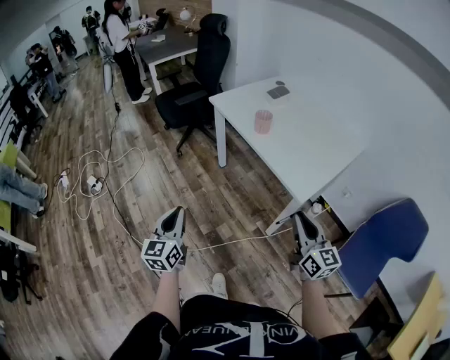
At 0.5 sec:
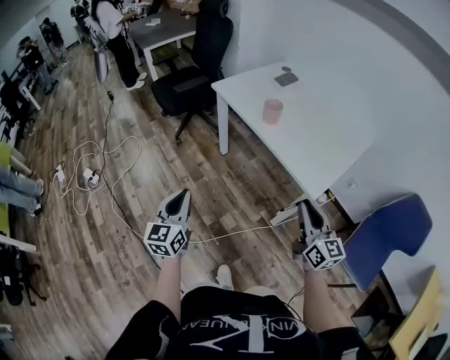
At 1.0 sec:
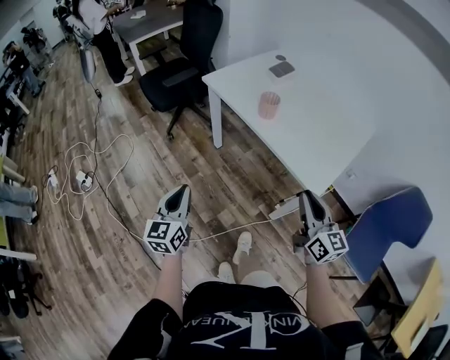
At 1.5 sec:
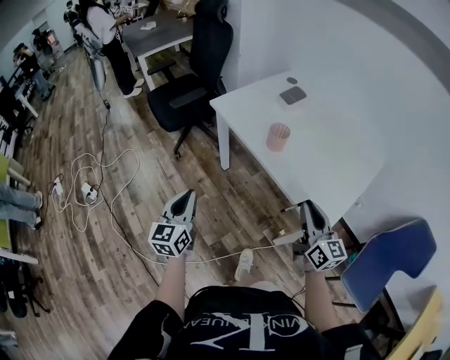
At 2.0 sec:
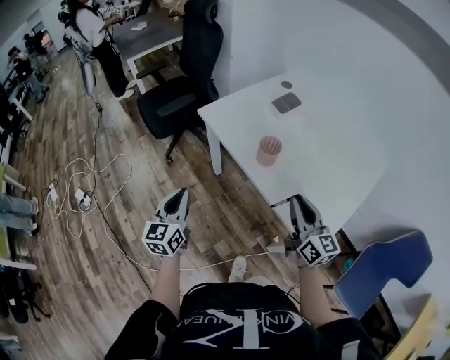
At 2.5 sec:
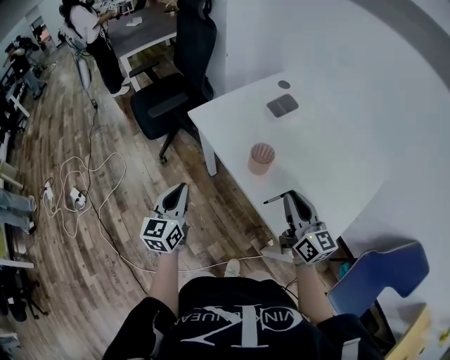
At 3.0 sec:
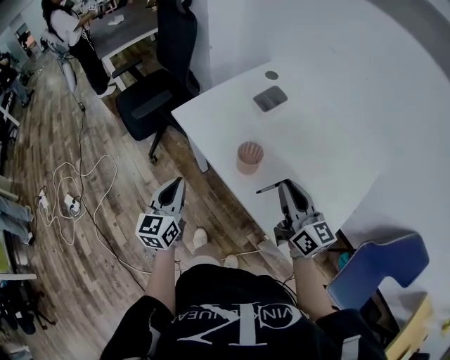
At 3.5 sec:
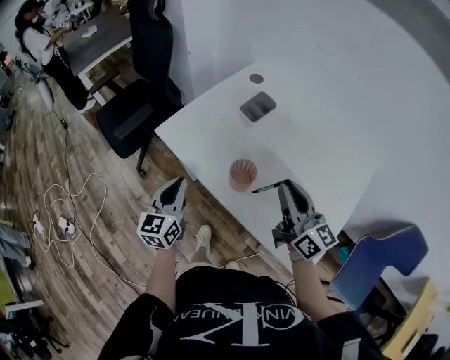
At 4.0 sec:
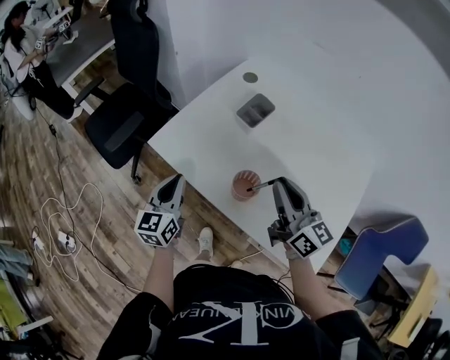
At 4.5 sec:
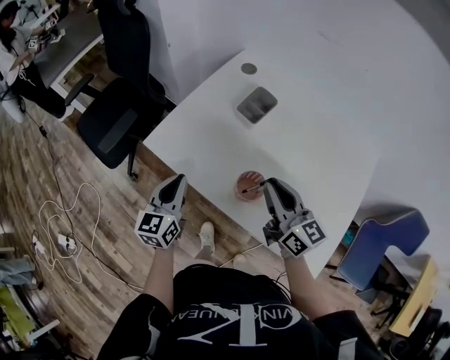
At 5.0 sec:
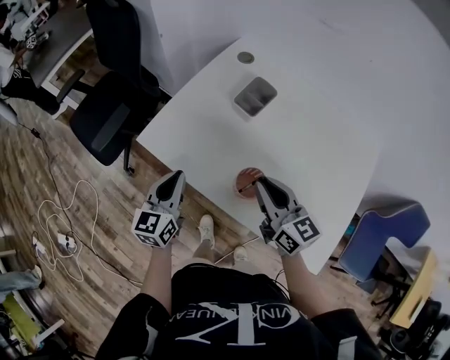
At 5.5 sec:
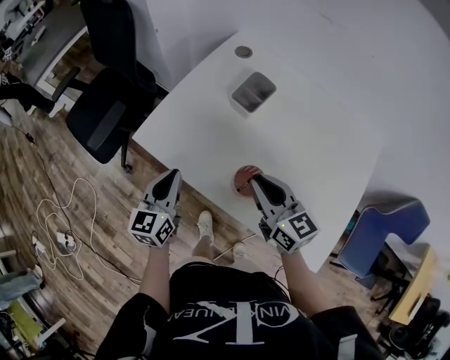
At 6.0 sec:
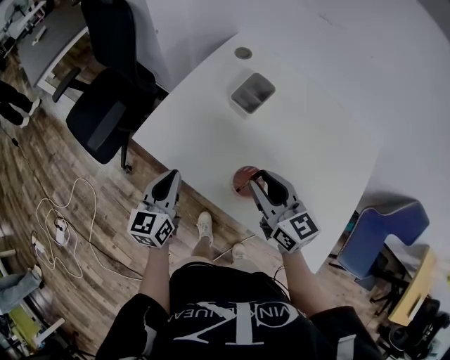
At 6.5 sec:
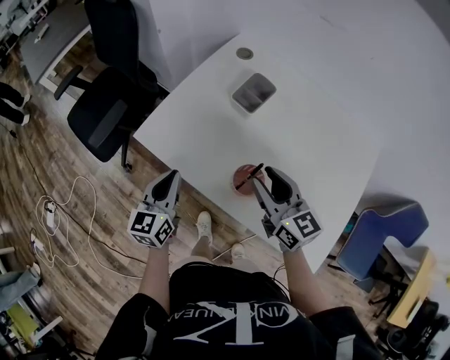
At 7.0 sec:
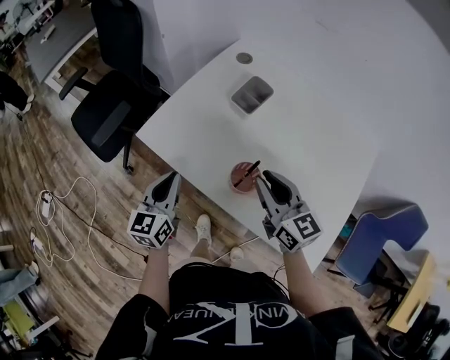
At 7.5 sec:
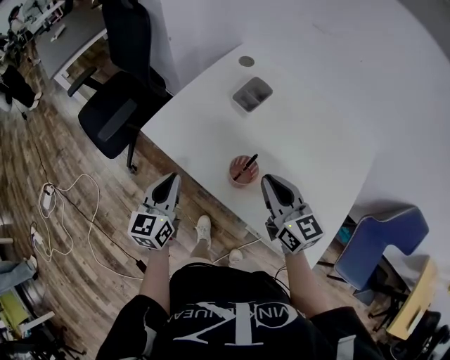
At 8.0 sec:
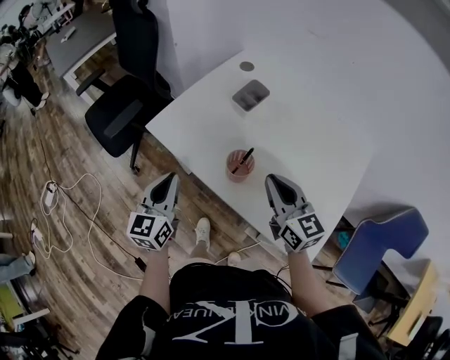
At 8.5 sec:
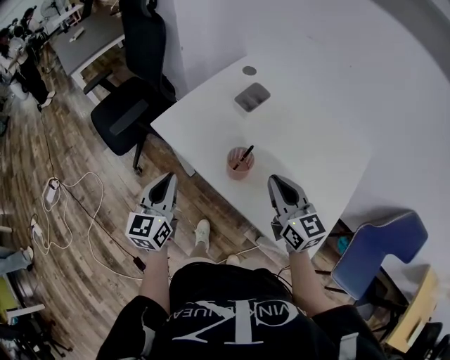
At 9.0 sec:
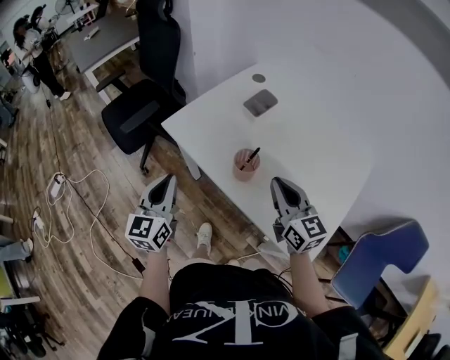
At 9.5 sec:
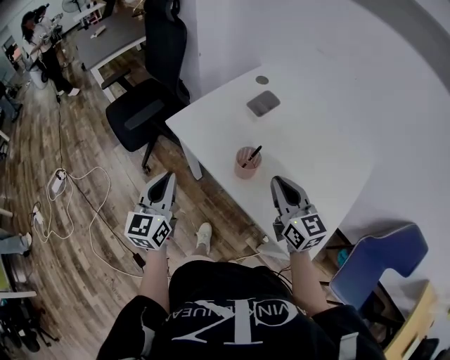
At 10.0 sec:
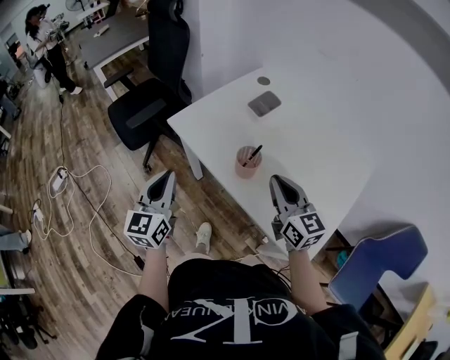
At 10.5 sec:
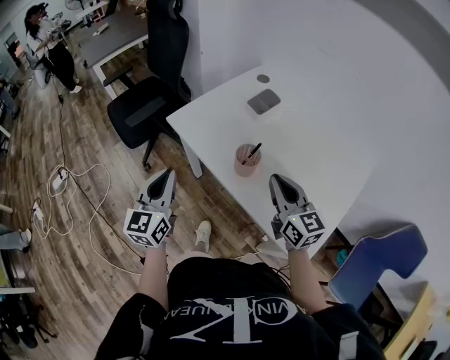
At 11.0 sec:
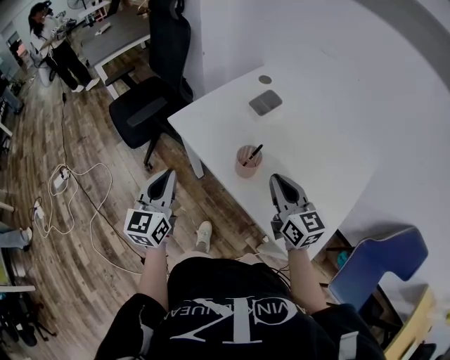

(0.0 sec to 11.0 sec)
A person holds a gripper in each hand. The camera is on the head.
0.0 sec - 2.0 sec: Both grippers travel together forward, approximately 30 cm.
2.0 sec - 3.5 sec: The left gripper travels forward and to the right by roughly 20 cm; the right gripper heads forward, covering roughly 15 cm.
3.5 sec - 5.5 sec: The right gripper moves downward, to the left and forward, about 15 cm. The left gripper goes some 10 cm forward and downward.
5.5 sec - 7.5 sec: The right gripper changes place by roughly 5 cm, and opens, then closes again, while the left gripper goes about 5 cm backward.
7.5 sec - 9.0 sec: The left gripper travels backward and upward by roughly 10 cm. The right gripper moves backward, some 5 cm.
9.0 sec - 11.0 sec: The grippers move only a little.

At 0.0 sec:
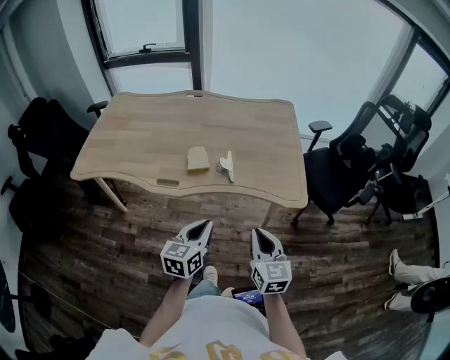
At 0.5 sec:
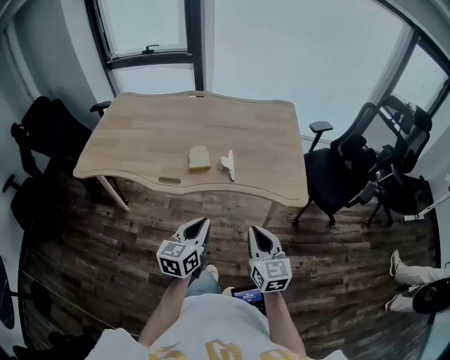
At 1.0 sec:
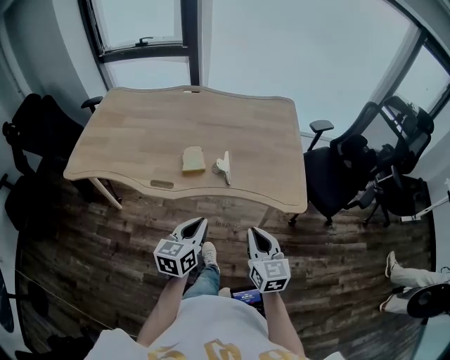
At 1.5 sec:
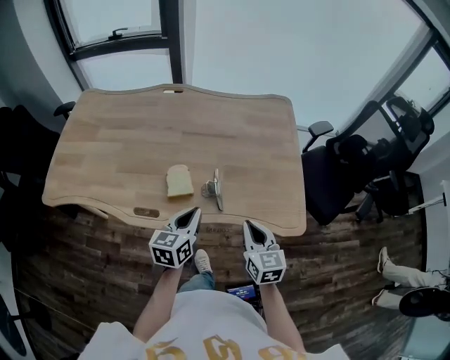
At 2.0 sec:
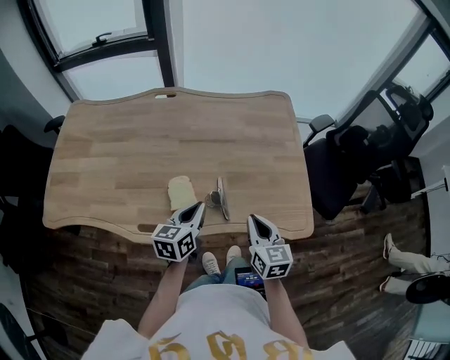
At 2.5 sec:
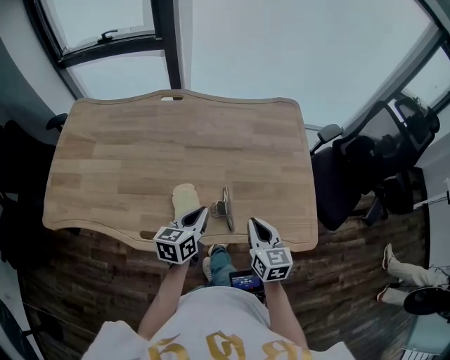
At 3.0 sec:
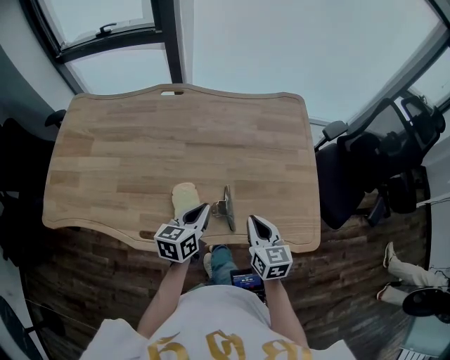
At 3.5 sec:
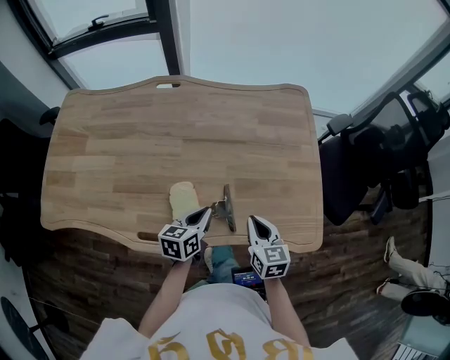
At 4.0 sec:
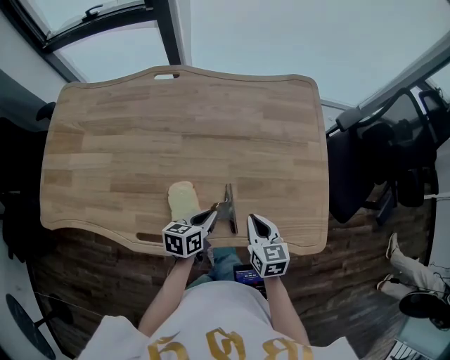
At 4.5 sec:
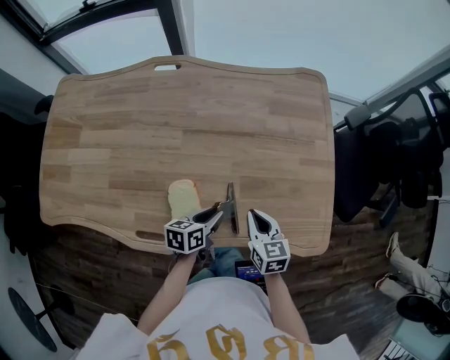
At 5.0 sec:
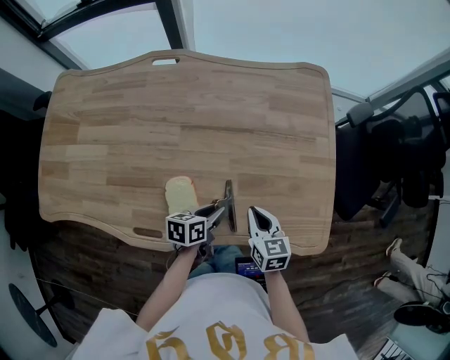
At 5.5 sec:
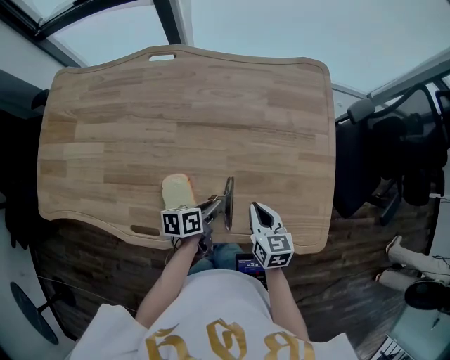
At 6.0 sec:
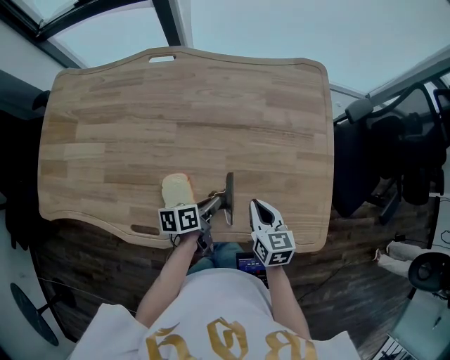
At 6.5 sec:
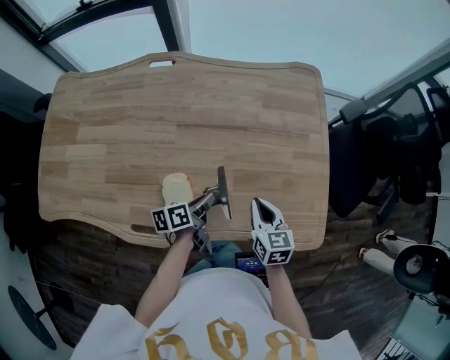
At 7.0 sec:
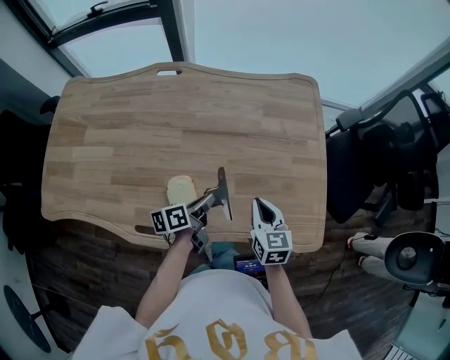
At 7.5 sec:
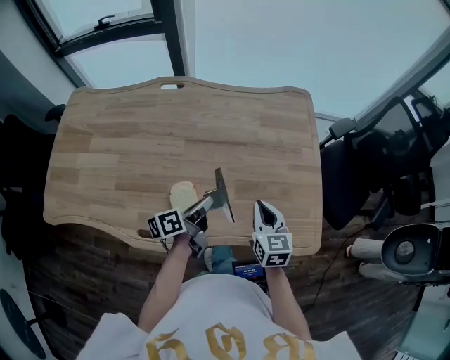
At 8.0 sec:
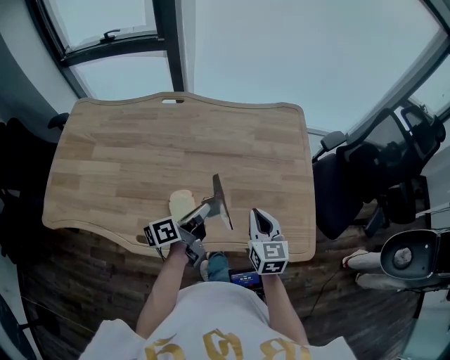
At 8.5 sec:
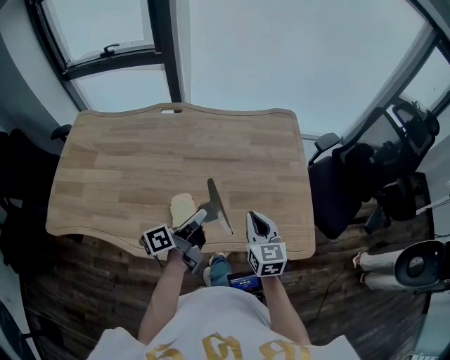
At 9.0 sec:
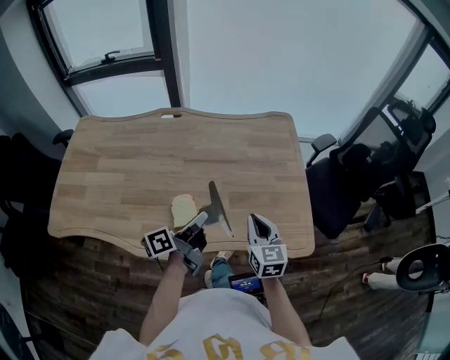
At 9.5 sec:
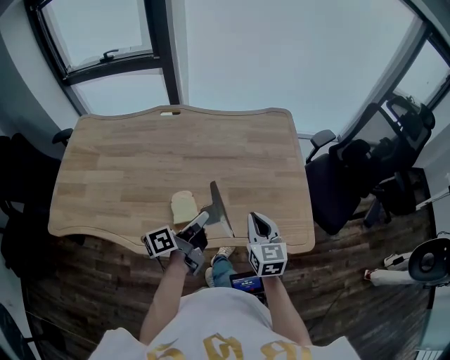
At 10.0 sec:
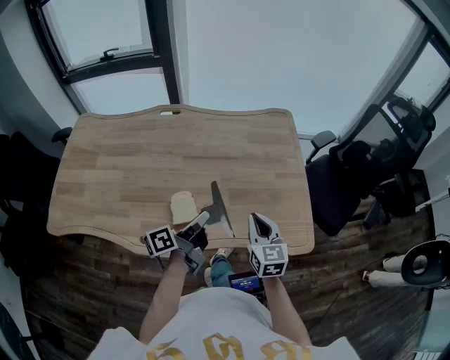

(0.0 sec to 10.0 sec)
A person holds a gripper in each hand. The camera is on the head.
0.0 sec - 2.0 sec: The two grippers go approximately 30 cm forward.
2.0 sec - 4.0 sec: The left gripper heads downward, covering some 15 cm, and turns by about 20 degrees. The right gripper goes about 15 cm downward and forward.
4.0 sec - 6.0 sec: The left gripper changes its angle by approximately 20 degrees.
6.0 sec - 8.0 sec: Both grippers travel together upward, approximately 15 cm. The left gripper rotates about 30 degrees.
8.0 sec - 10.0 sec: The left gripper moves backward, some 5 cm. Meanwhile the right gripper ends up about 5 cm from where it was.

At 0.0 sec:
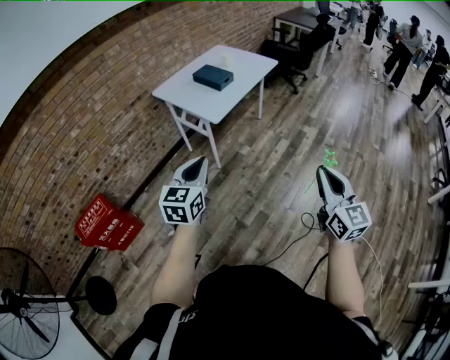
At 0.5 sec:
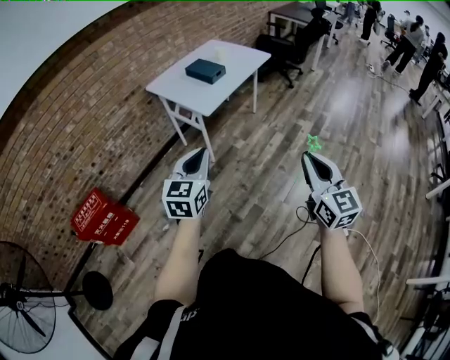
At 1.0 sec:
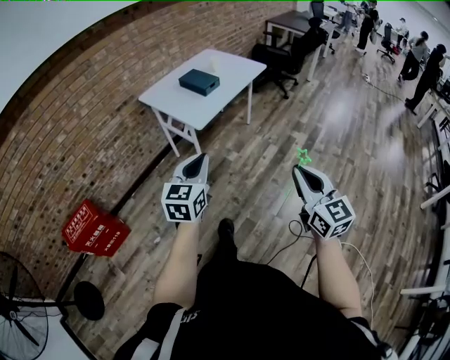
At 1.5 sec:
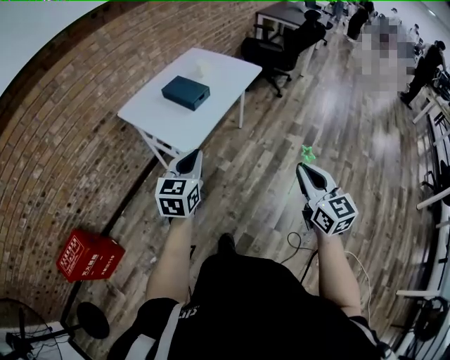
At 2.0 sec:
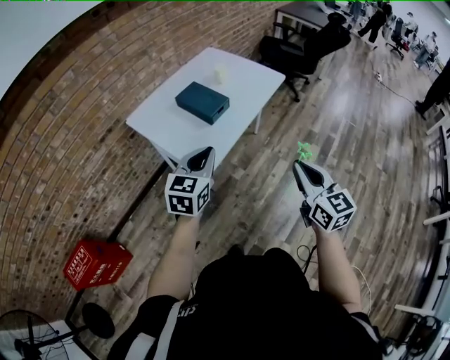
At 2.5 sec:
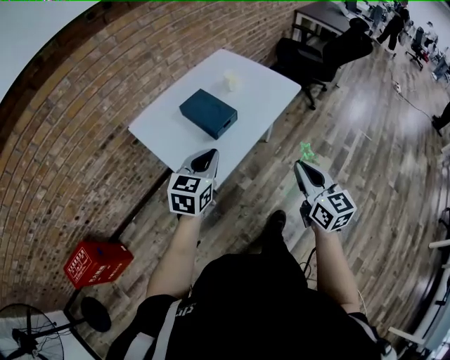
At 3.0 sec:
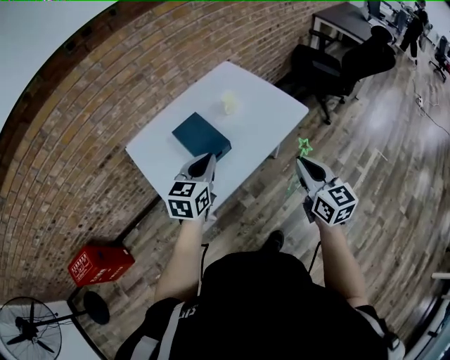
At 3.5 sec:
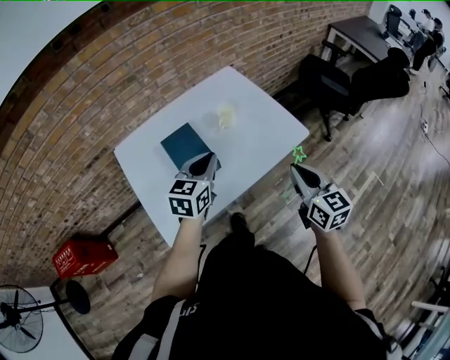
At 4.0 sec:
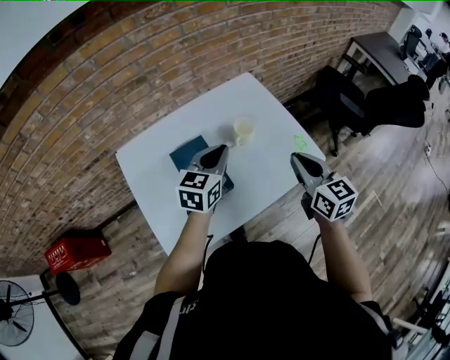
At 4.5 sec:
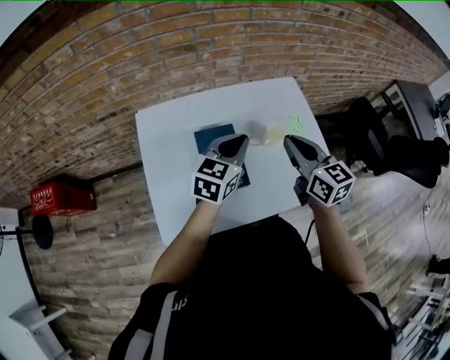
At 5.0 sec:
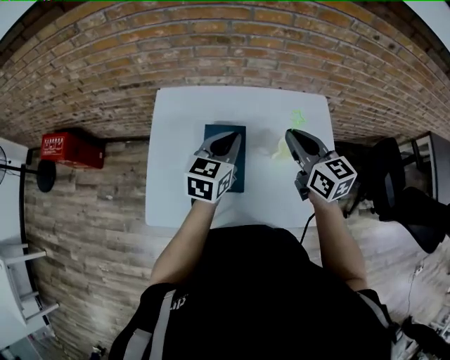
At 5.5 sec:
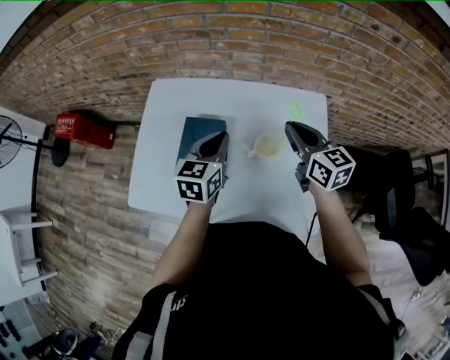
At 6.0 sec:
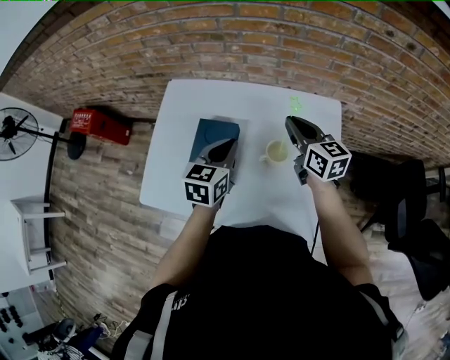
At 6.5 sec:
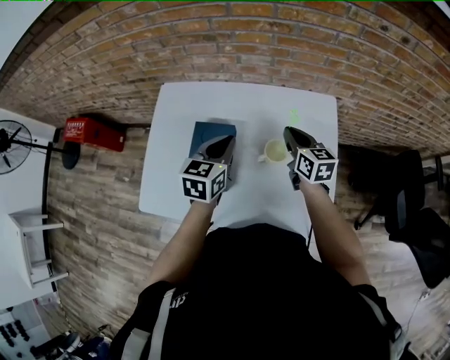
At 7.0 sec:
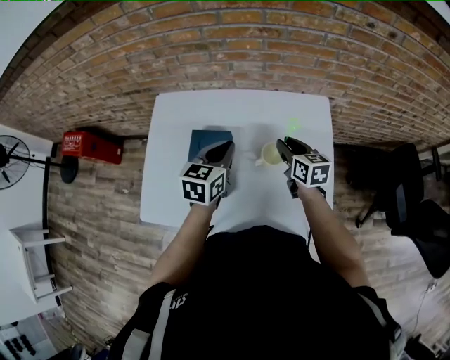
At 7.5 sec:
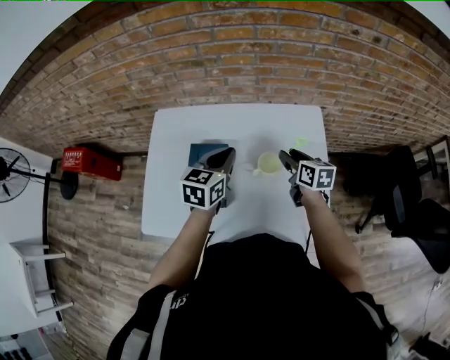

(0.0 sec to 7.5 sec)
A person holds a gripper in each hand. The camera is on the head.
0.0 sec - 2.0 sec: The two grippers travel together, forward, about 40 cm.
2.0 sec - 4.0 sec: The two grippers travel together, forward, roughly 50 cm. The right gripper turns by approximately 30 degrees.
4.0 sec - 5.5 sec: The right gripper changes place by roughly 25 cm, and swivels approximately 40 degrees, while the left gripper shifts by roughly 10 cm, and rotates some 40 degrees.
5.5 sec - 7.5 sec: The right gripper travels downward by approximately 10 cm, rotates about 30 degrees, and opens up.
